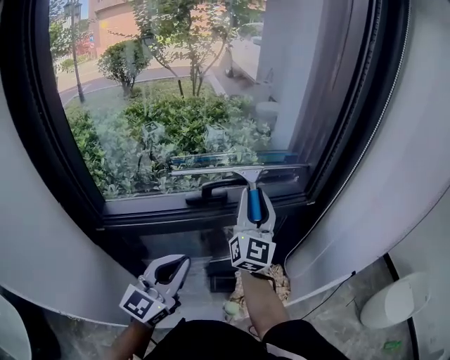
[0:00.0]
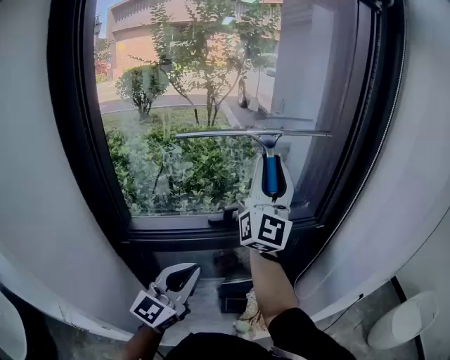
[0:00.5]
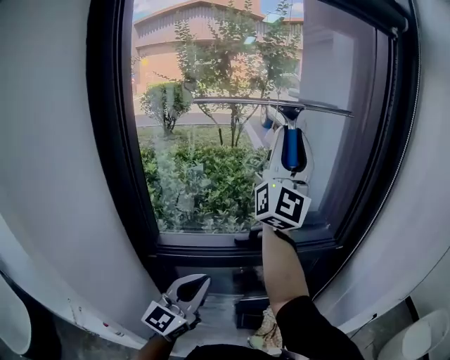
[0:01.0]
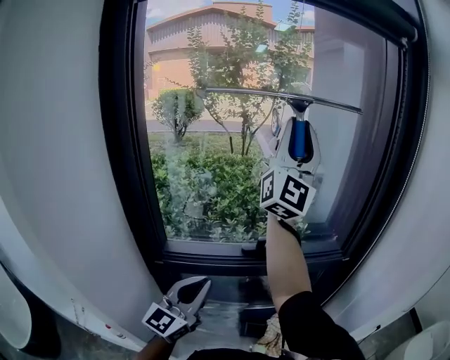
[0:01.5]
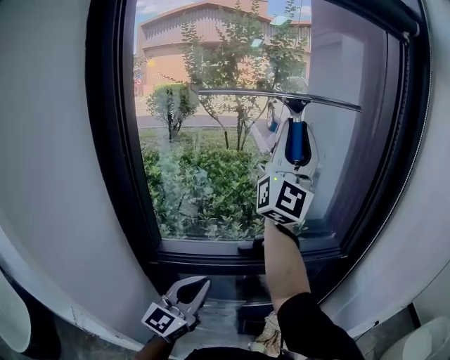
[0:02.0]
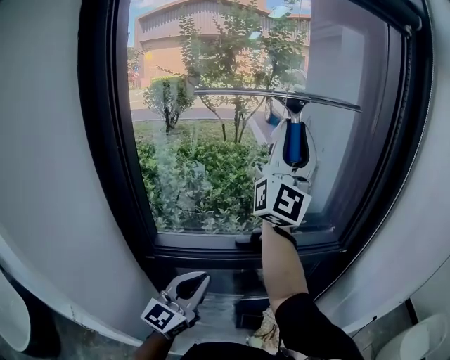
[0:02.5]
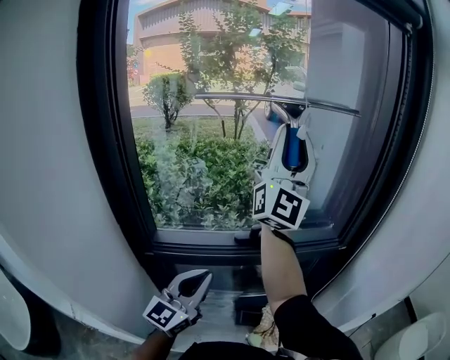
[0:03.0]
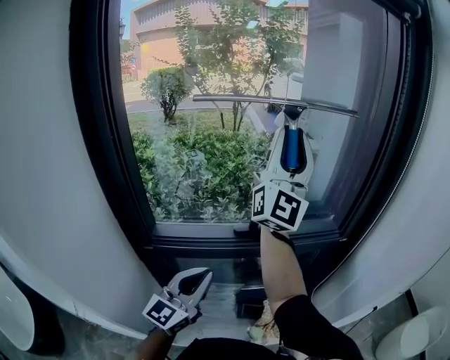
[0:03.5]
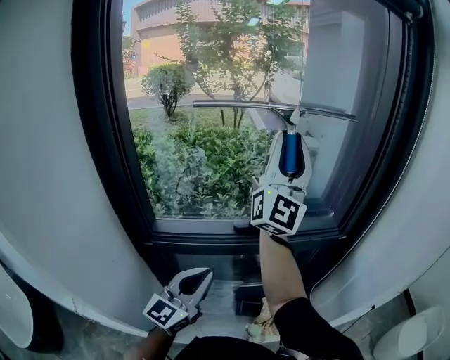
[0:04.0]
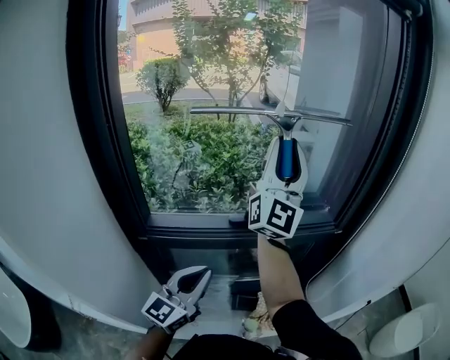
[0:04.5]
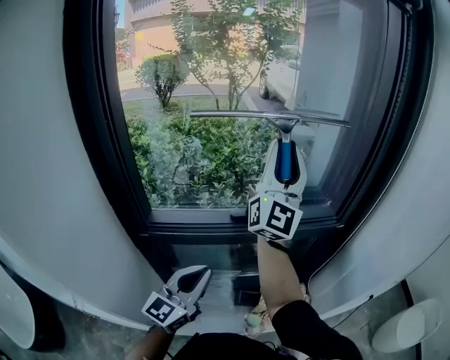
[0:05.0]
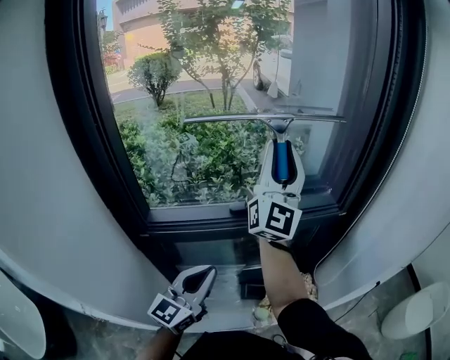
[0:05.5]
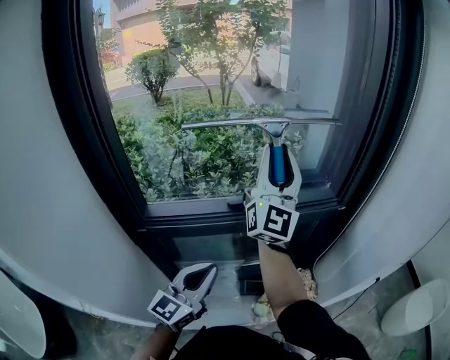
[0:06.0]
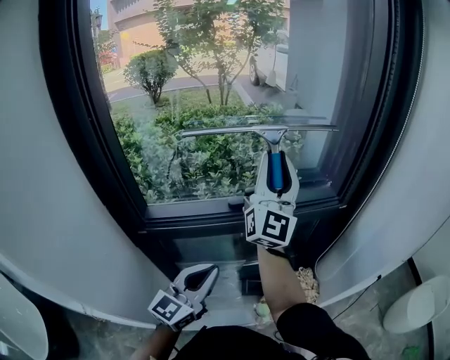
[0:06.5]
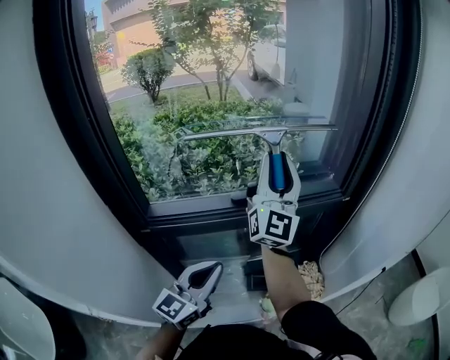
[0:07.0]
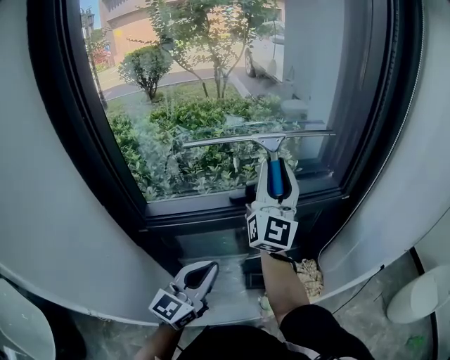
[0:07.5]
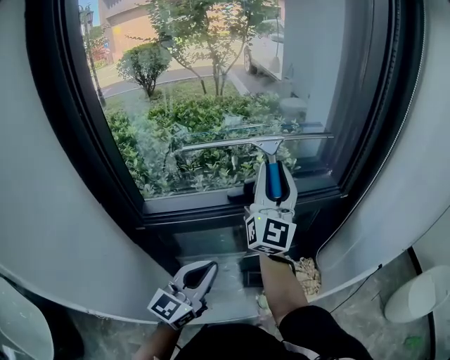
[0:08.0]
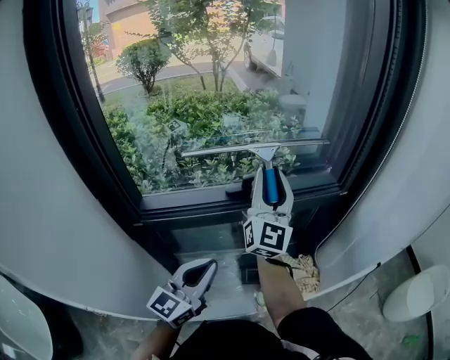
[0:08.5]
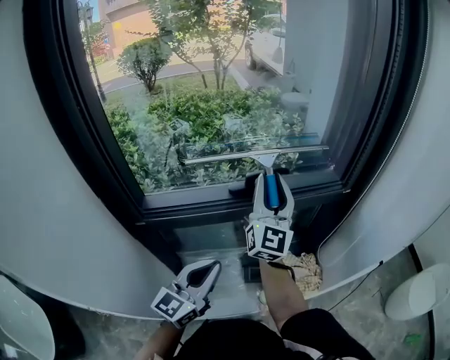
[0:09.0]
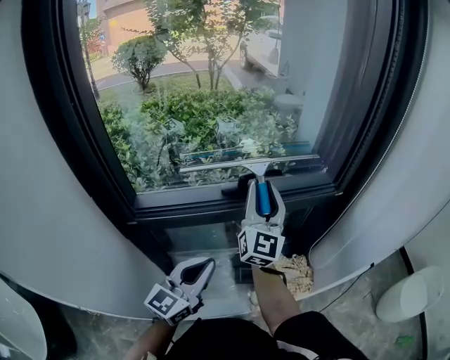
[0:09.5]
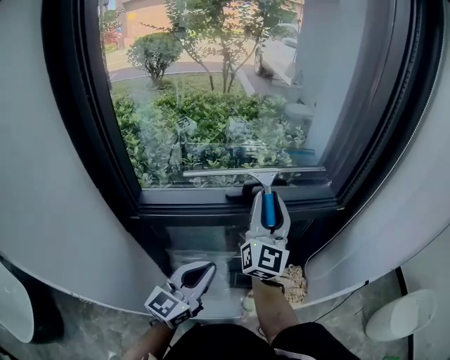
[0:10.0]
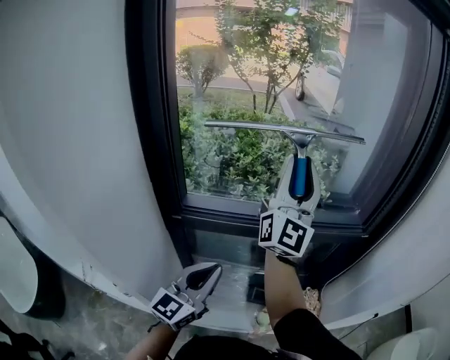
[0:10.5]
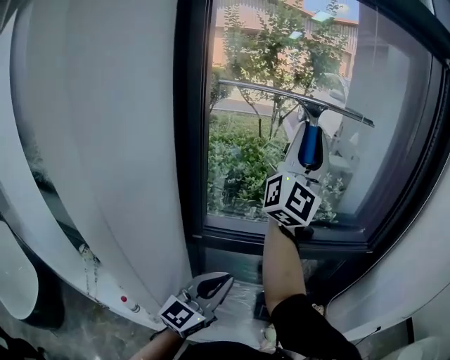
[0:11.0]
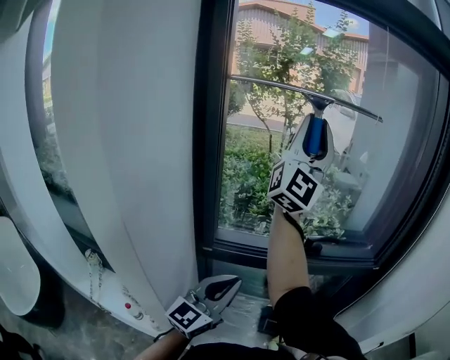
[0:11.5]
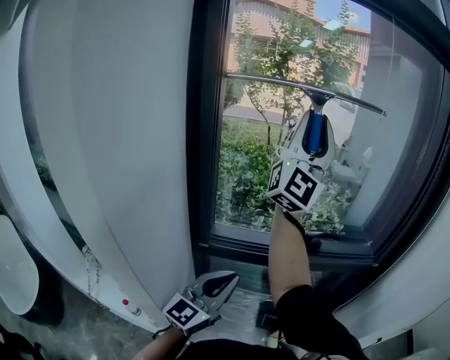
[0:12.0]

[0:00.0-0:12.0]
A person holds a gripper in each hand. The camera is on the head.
0:00.0 to 0:02.0: The right gripper heads upward, covering roughly 35 cm, and tilts its fingers roughly 30 degrees upward, while the left gripper heads to the left and upward, covering roughly 10 cm.
0:02.0 to 0:04.0: The right gripper travels downward by roughly 10 cm.
0:04.0 to 0:06.0: The right gripper travels downward by some 10 cm.
0:06.0 to 0:08.0: The right gripper goes approximately 10 cm downward.
0:08.0 to 0:10.0: The right gripper goes roughly 5 cm downward.
0:10.0 to 0:12.0: The left gripper heads to the left and upward, covering about 15 cm; the right gripper travels upward and to the left by about 35 cm, and angles its fingers upward, by about 30 degrees.

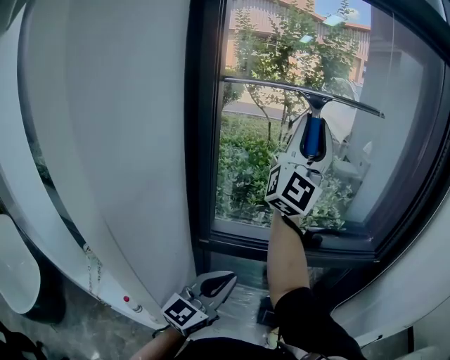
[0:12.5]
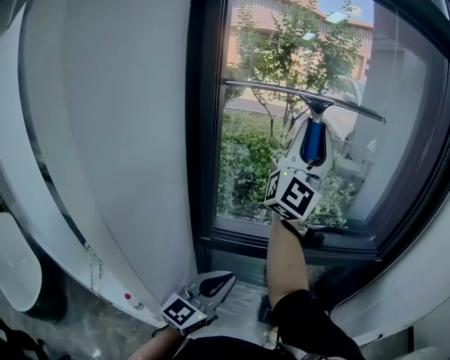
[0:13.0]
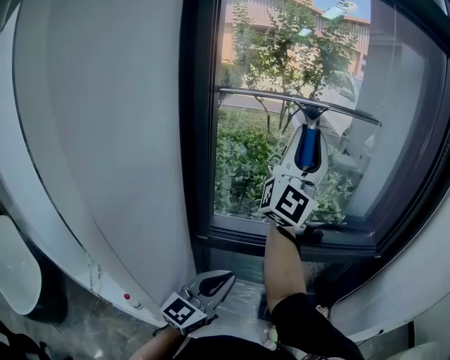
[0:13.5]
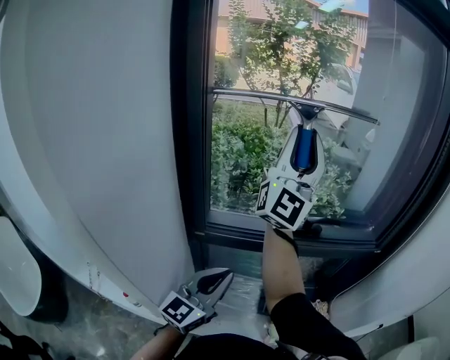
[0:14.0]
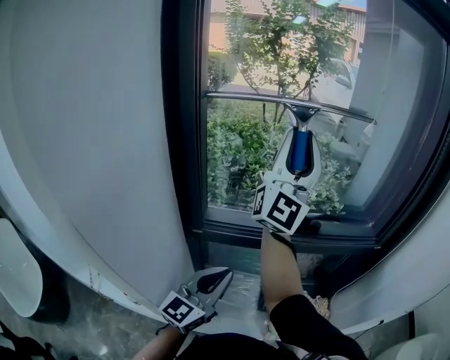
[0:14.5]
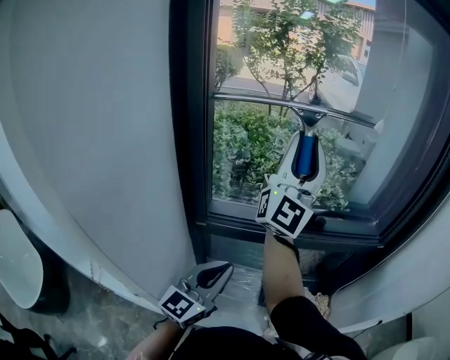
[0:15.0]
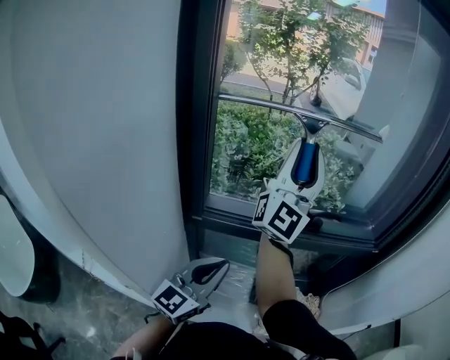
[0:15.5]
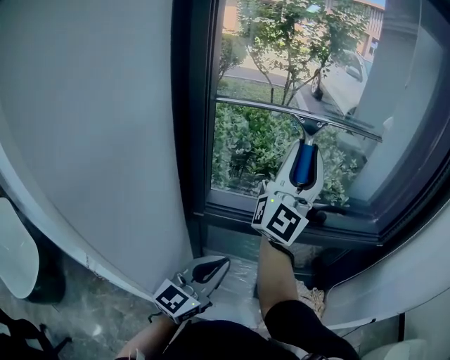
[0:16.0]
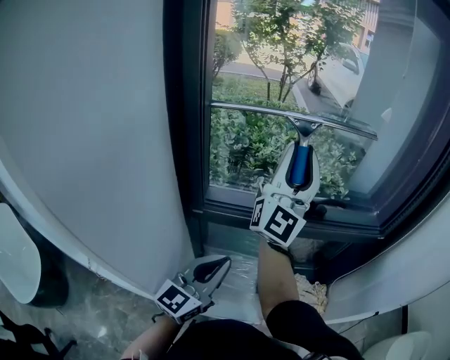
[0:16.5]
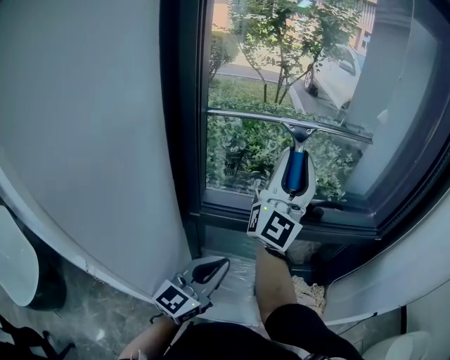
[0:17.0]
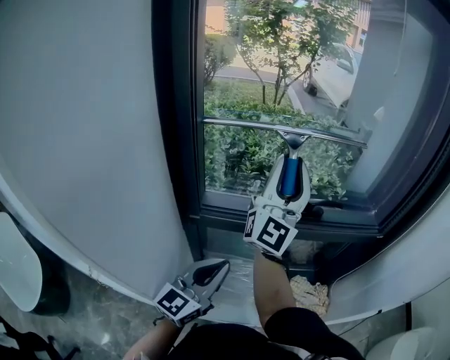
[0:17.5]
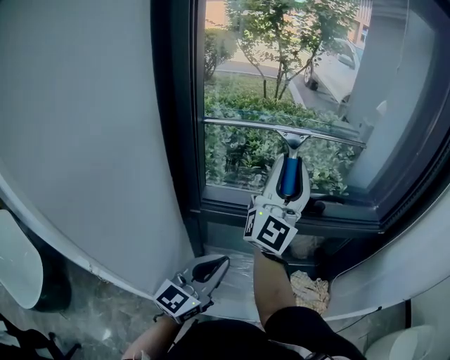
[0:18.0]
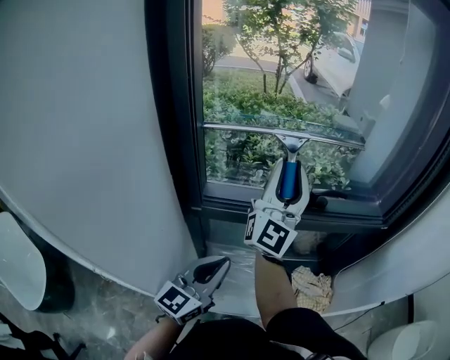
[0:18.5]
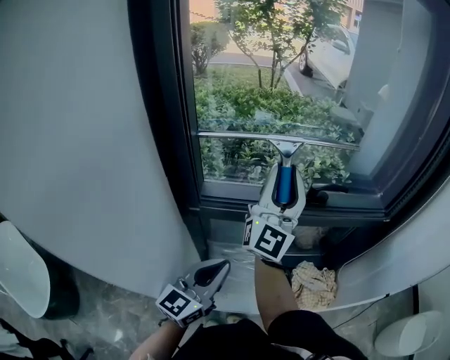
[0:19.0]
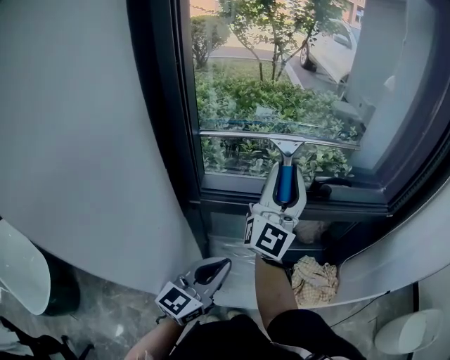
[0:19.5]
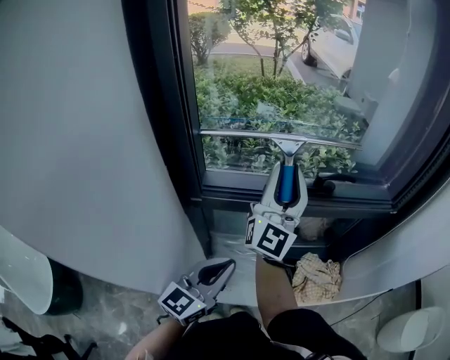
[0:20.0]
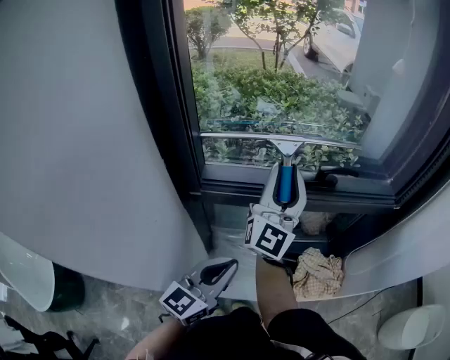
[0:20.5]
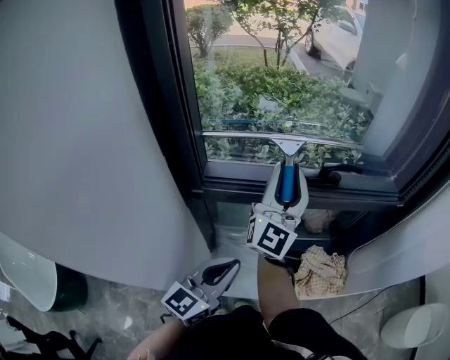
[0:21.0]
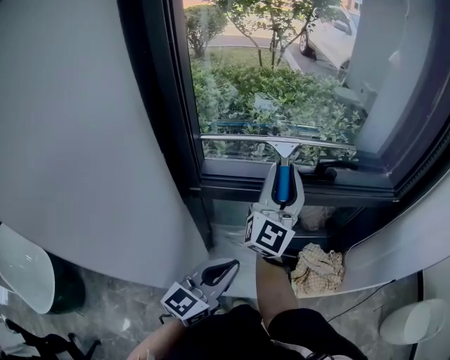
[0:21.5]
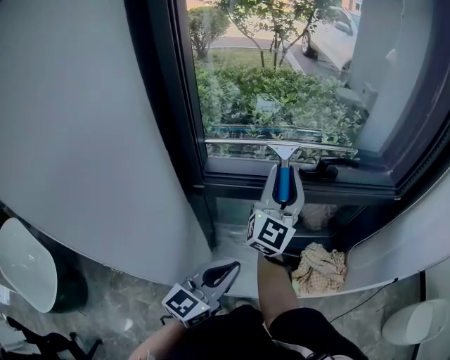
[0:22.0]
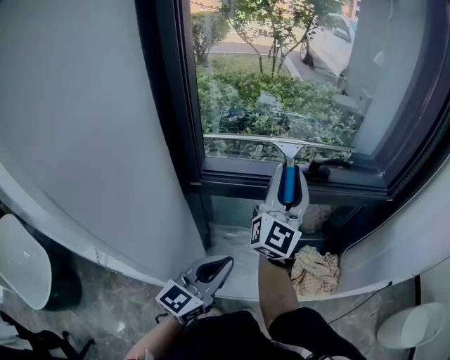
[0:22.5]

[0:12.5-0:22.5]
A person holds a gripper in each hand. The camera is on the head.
0:12.5 to 0:14.5: The right gripper moves downward, some 5 cm.
0:14.5 to 0:16.5: The right gripper shifts approximately 10 cm downward.
0:16.5 to 0:18.5: The right gripper is displaced downward by about 5 cm.
0:18.5 to 0:20.5: The right gripper moves downward, some 10 cm.
0:20.5 to 0:22.5: The grippers stay close to where they were, moving slightly.

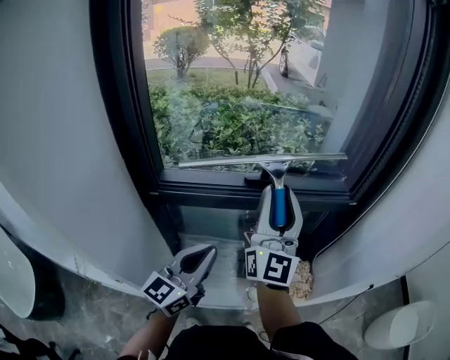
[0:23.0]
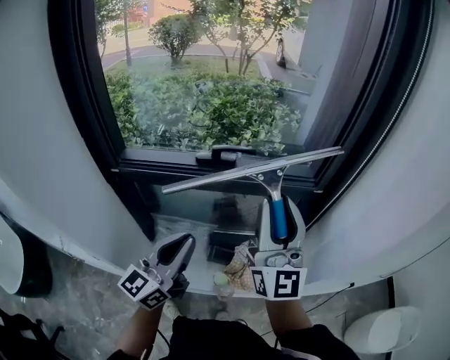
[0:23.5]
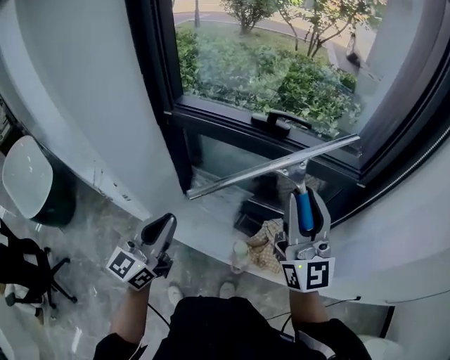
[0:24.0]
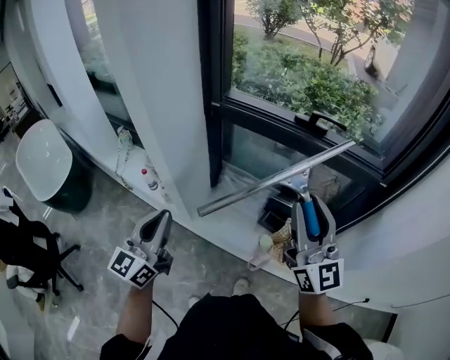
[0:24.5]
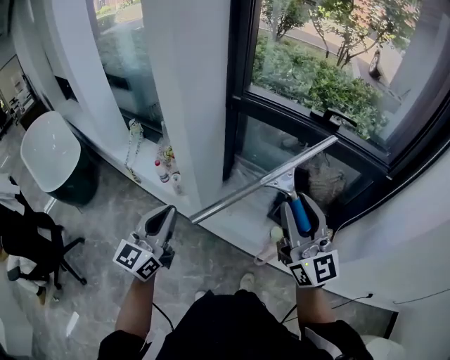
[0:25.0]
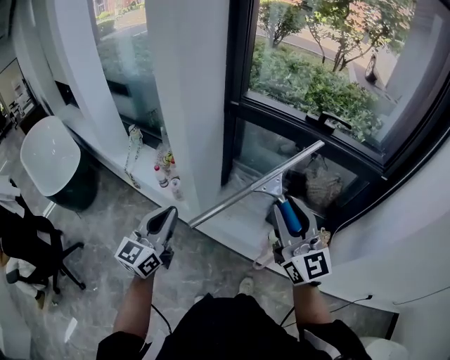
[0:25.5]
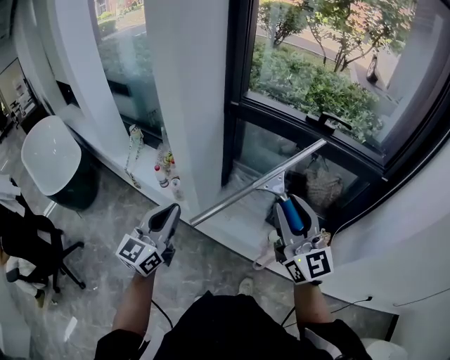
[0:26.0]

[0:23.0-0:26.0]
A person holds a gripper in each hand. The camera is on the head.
0:23.0 to 0:24.5: The right gripper moves approximately 20 cm, and swivels roughly 40 degrees; the left gripper moves some 25 cm, and rotates about 40 degrees.
0:24.5 to 0:26.0: The right gripper travels to the left by approximately 10 cm. The left gripper shifts by some 5 cm.

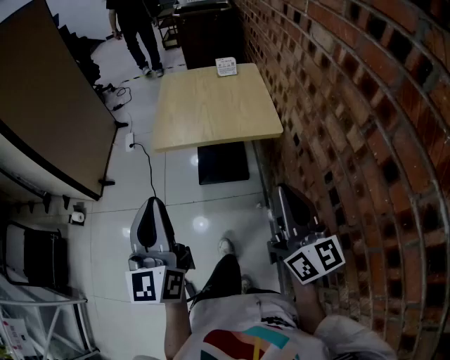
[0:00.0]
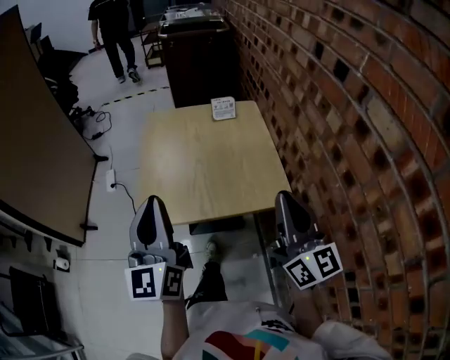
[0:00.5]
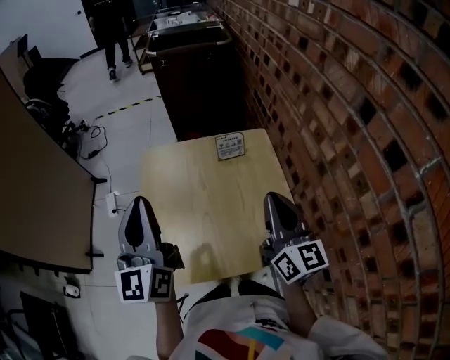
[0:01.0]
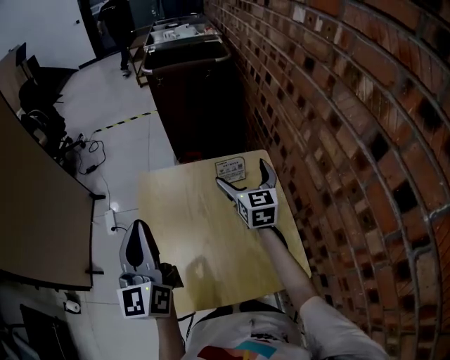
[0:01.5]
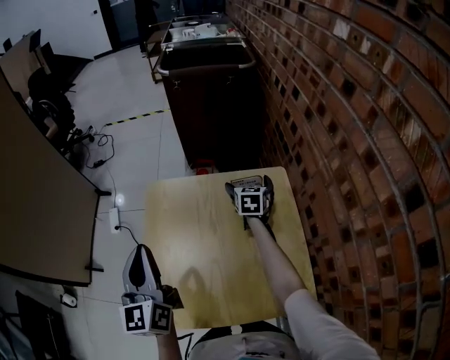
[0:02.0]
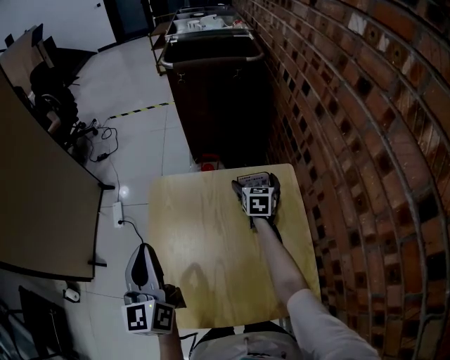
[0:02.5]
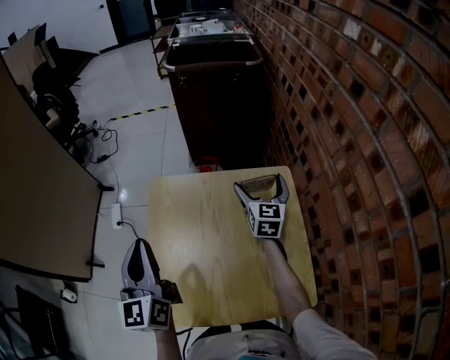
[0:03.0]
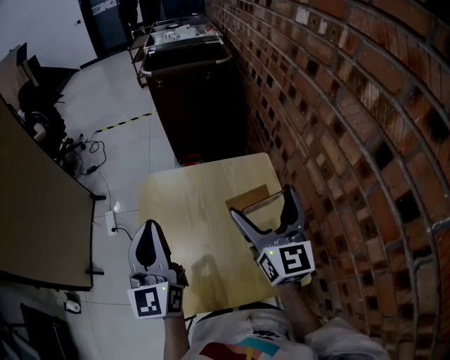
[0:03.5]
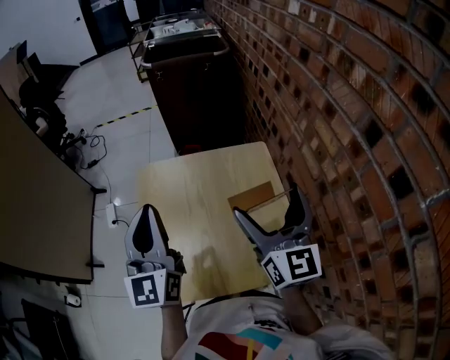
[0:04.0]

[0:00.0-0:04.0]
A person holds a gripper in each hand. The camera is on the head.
0:00.0 to 0:02.0: The pair of grippers is taken forward, approximately 80 cm. The right gripper tips its fingers downward by about 40 degrees, and opens up.
0:02.0 to 0:04.0: The left gripper heads to the right and upward, covering about 10 cm. Meanwhile the right gripper shifts some 40 cm backward and upward, and points its fingers approximately 40 degrees further upward.
